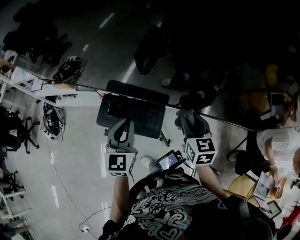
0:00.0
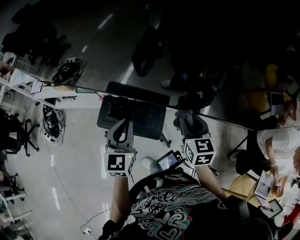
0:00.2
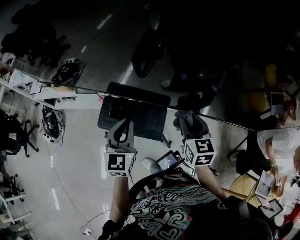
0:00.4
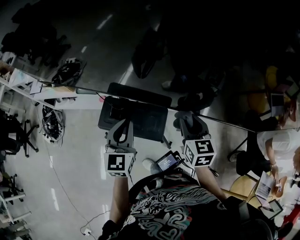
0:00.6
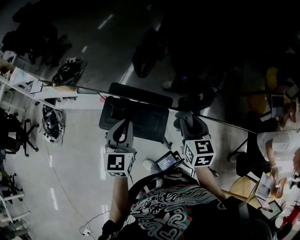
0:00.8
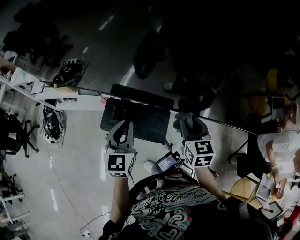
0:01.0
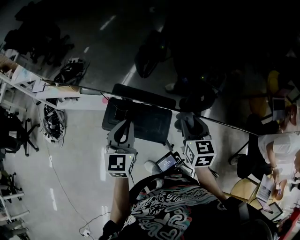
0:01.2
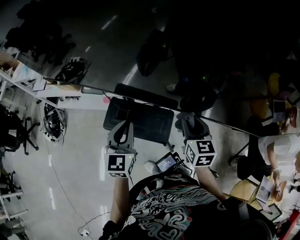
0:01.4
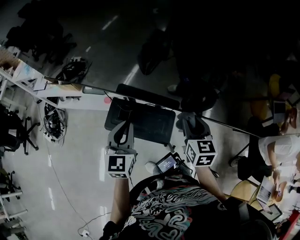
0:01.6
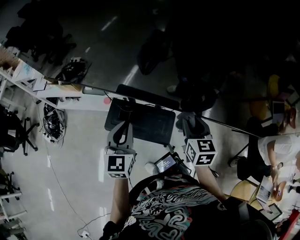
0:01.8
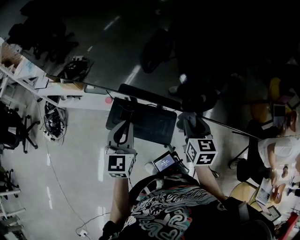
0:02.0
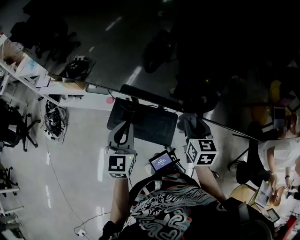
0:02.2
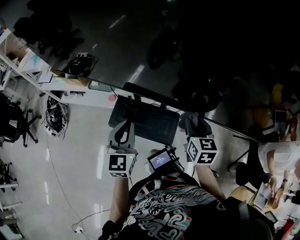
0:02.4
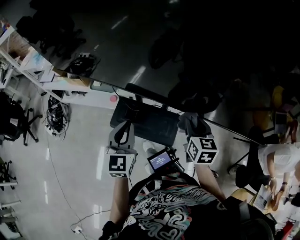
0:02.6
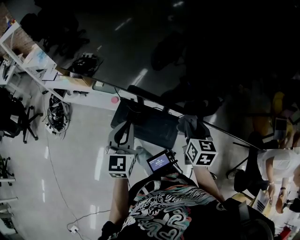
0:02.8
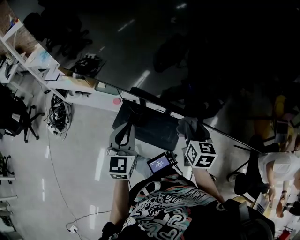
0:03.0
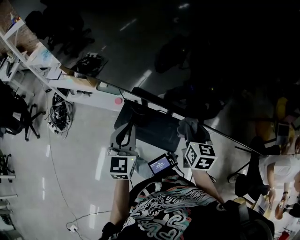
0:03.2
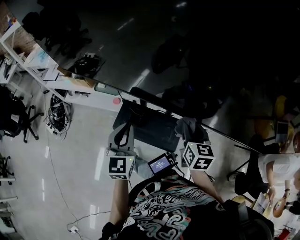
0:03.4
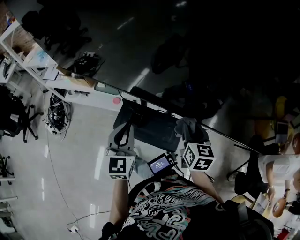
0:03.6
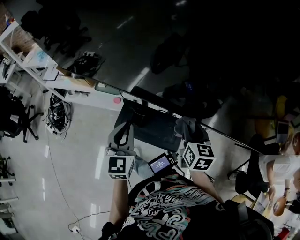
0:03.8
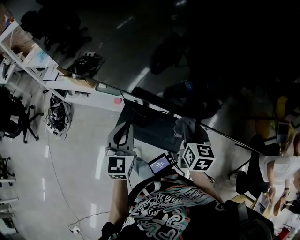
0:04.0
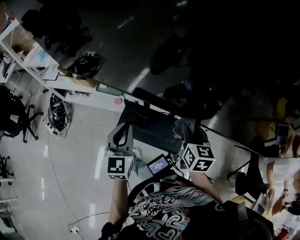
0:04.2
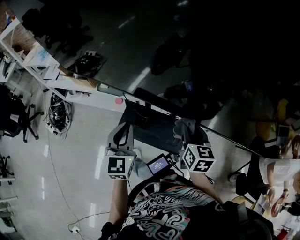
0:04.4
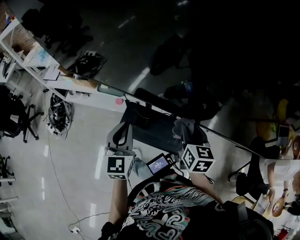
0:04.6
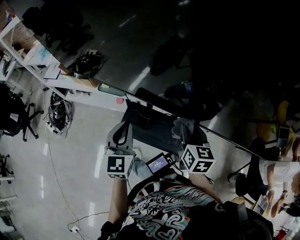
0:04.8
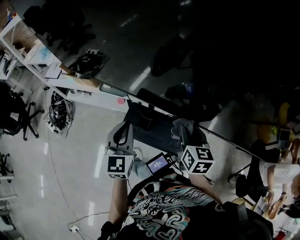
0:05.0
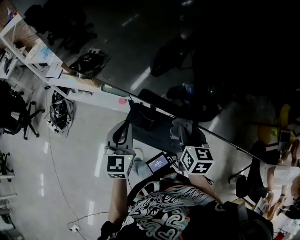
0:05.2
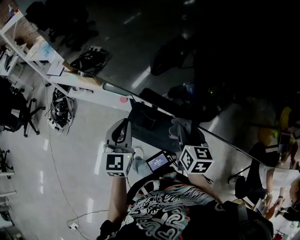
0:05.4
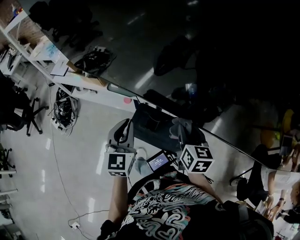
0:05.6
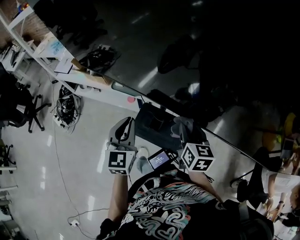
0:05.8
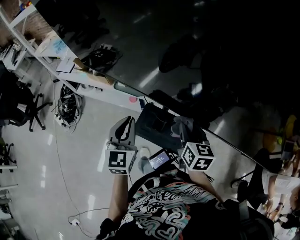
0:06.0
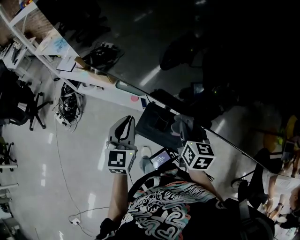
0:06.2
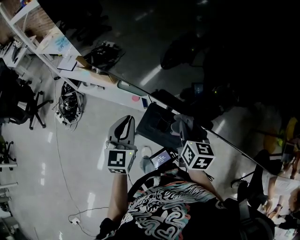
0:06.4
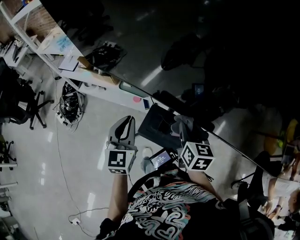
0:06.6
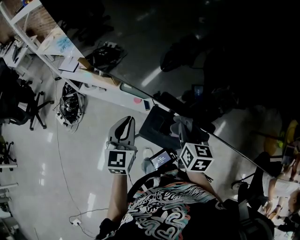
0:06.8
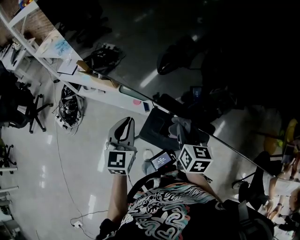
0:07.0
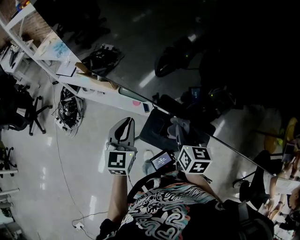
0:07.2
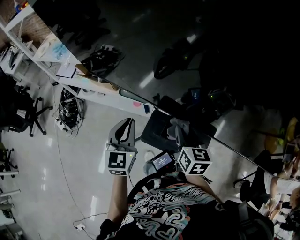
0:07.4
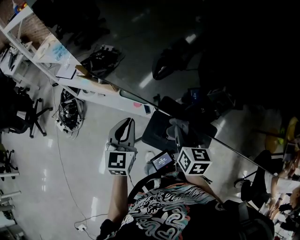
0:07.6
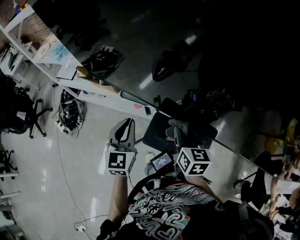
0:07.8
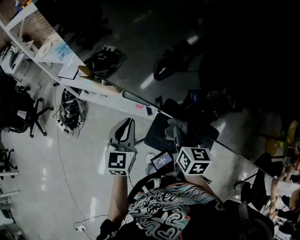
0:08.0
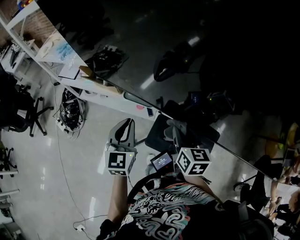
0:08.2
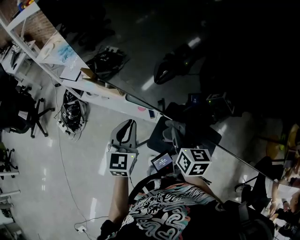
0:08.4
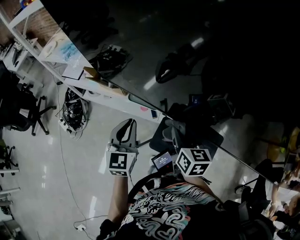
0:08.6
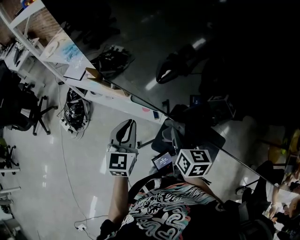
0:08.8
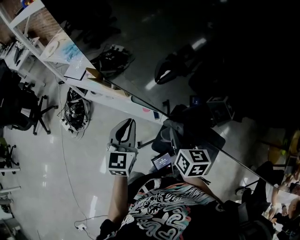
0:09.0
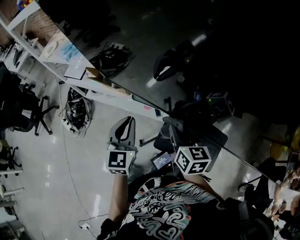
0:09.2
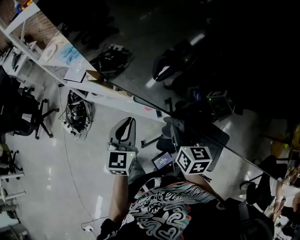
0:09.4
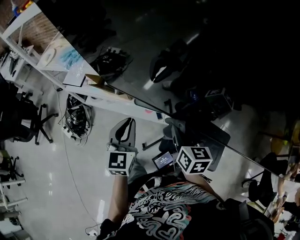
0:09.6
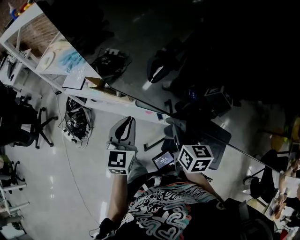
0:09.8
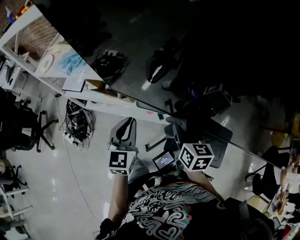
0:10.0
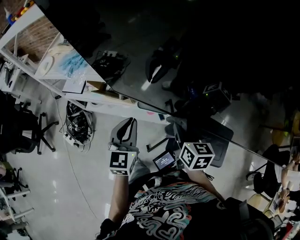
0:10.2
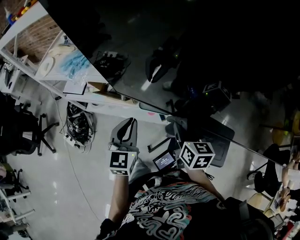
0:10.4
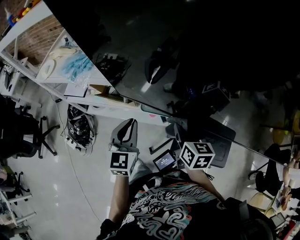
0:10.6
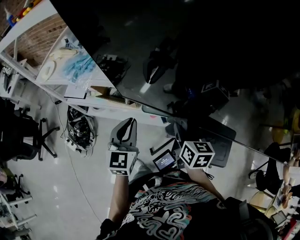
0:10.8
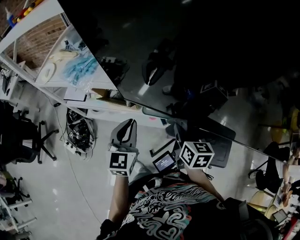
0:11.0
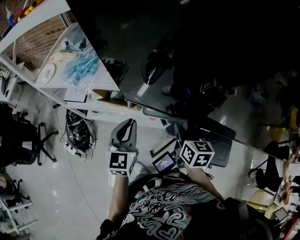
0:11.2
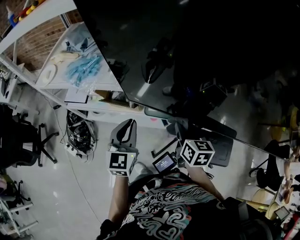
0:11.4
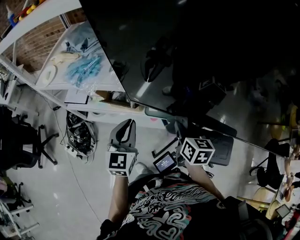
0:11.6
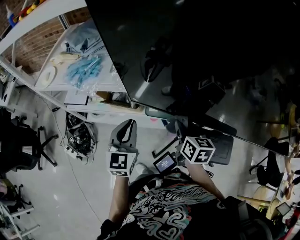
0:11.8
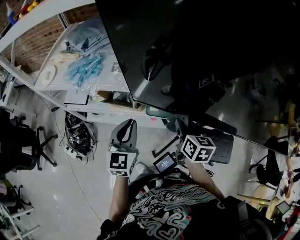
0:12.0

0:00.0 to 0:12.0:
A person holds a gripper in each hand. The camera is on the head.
0:00.0 to 0:01.6: Both grippers move to the left, some 10 cm.
0:01.6 to 0:03.0: The left gripper shifts approximately 5 cm to the left.
0:03.0 to 0:04.4: The two grippers go roughly 5 cm to the left.
0:04.4 to 0:06.0: The grippers both shift to the left and forward by roughly 15 cm.
0:06.0 to 0:07.6: The two grippers go some 15 cm to the left and forward.
0:07.6 to 0:09.0: Both grippers move to the left and forward, roughly 10 cm.
0:09.0 to 0:10.4: The two grippers go about 10 cm to the left and forward.
0:10.4 to 0:12.0: Both grippers move to the left, some 10 cm.

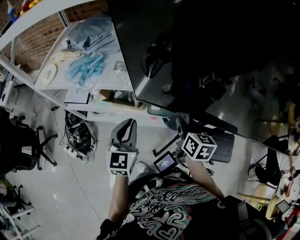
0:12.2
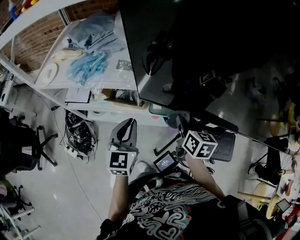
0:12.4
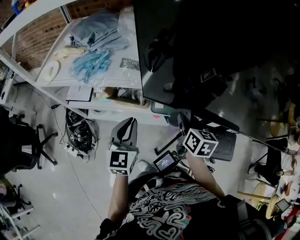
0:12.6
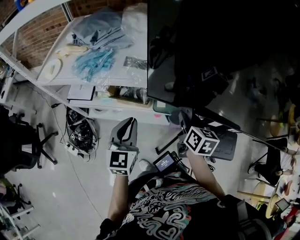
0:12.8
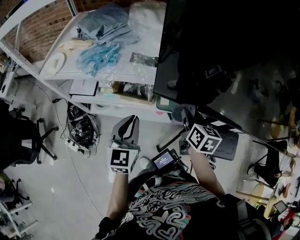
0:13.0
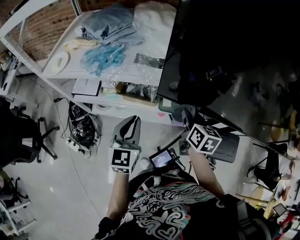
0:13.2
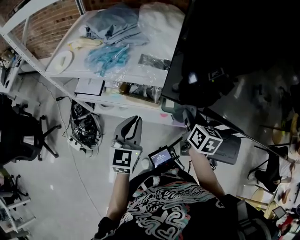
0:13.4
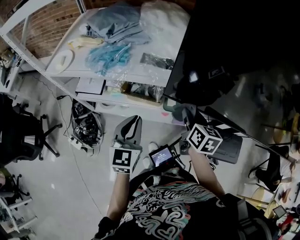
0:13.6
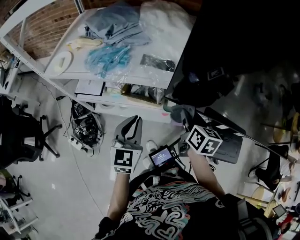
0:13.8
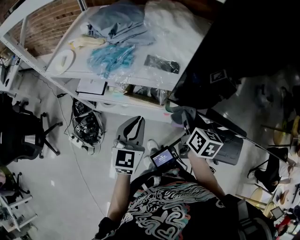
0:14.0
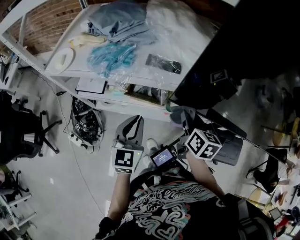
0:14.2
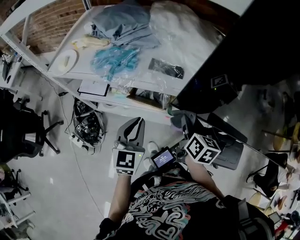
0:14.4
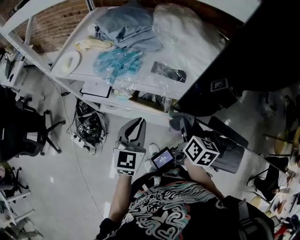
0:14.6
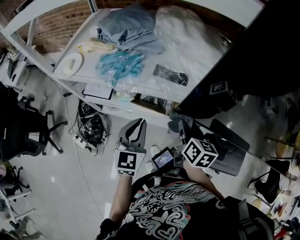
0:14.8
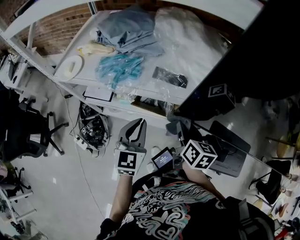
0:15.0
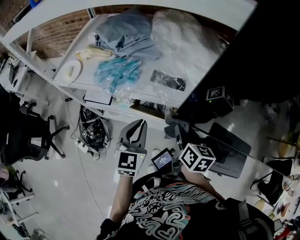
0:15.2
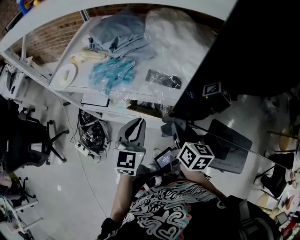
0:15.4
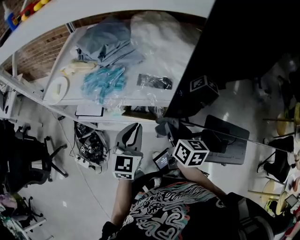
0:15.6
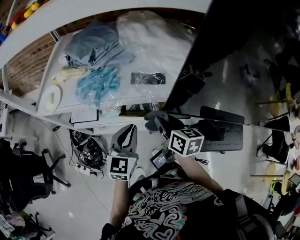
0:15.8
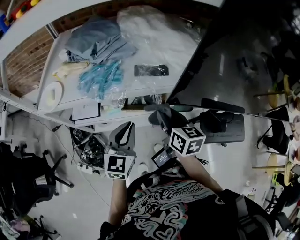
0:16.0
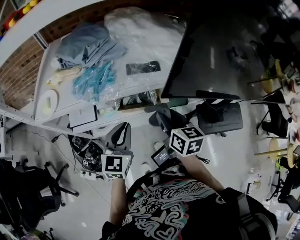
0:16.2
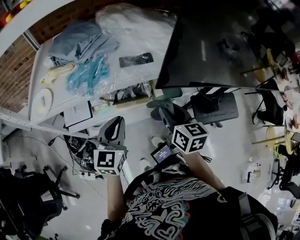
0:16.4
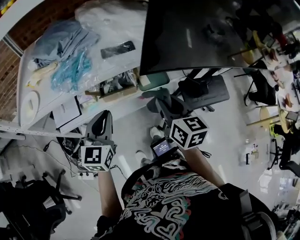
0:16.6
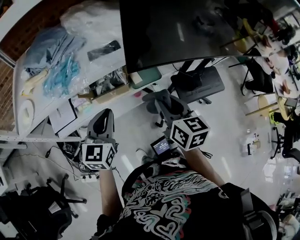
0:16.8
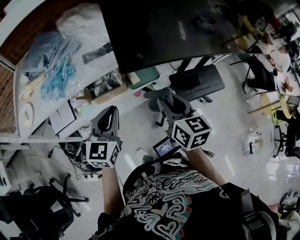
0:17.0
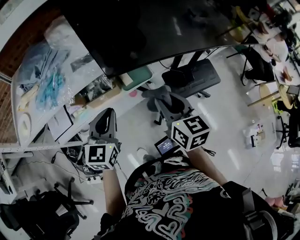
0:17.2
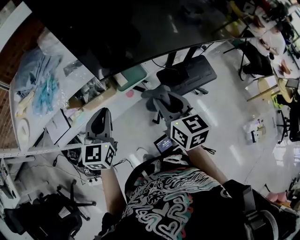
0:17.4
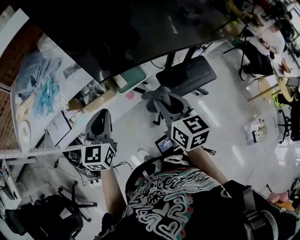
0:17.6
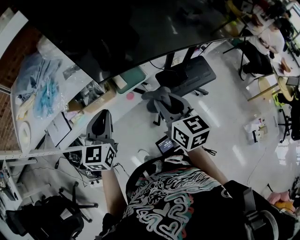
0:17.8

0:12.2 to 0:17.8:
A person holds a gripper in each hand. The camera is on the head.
0:12.2 to 0:13.6: The two grippers go some 10 cm to the left.
0:13.6 to 0:15.0: The right gripper travels to the left by roughly 5 cm; the left gripper heads forward, covering about 5 cm.
0:15.0 to 0:16.4: The right gripper travels backward and to the left by about 10 cm. Meanwhile the left gripper travels to the left by some 5 cm, and swivels approximately 30 degrees.
0:16.4 to 0:17.8: Both grippers move to the right, roughly 20 cm.

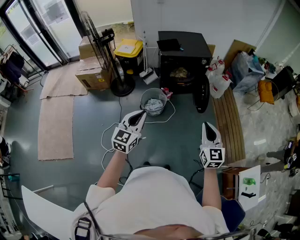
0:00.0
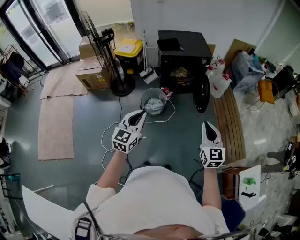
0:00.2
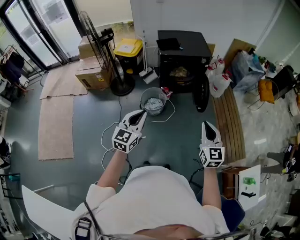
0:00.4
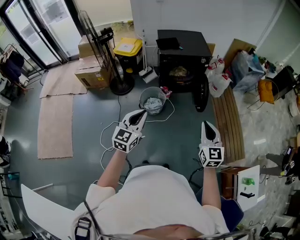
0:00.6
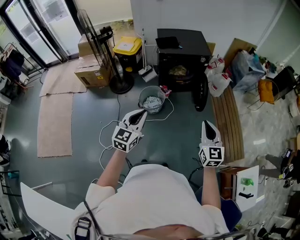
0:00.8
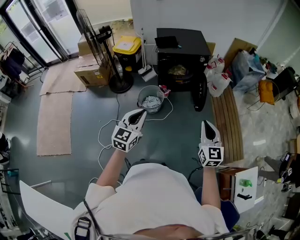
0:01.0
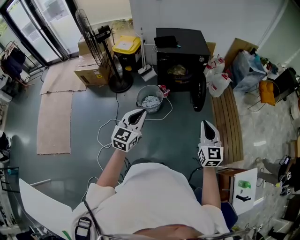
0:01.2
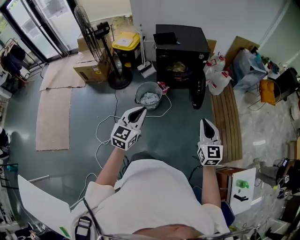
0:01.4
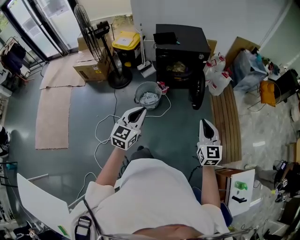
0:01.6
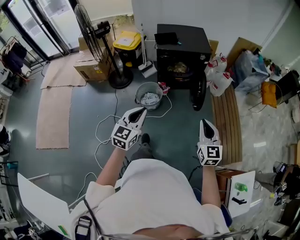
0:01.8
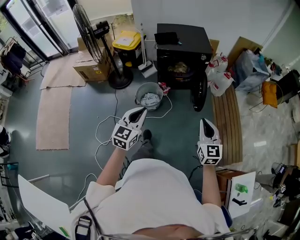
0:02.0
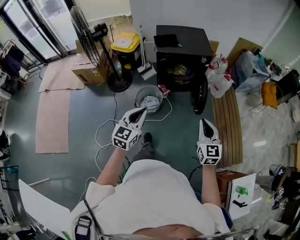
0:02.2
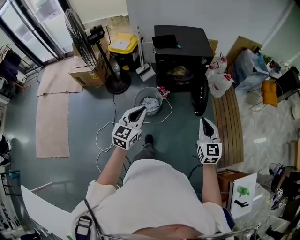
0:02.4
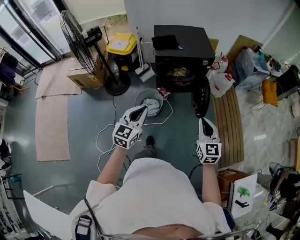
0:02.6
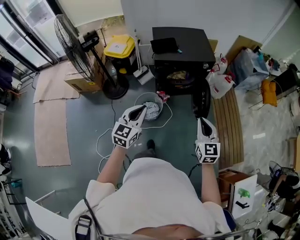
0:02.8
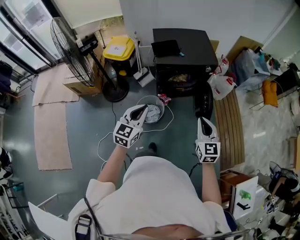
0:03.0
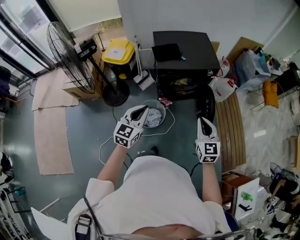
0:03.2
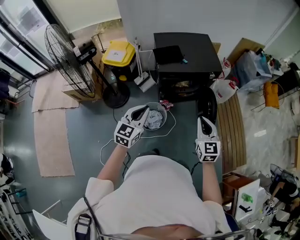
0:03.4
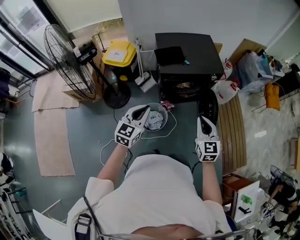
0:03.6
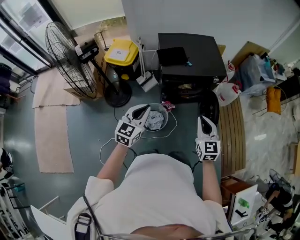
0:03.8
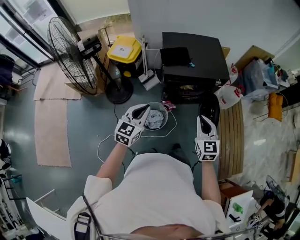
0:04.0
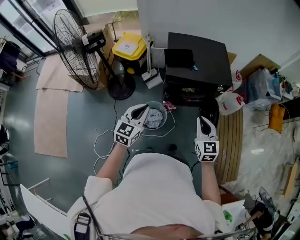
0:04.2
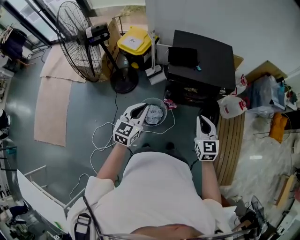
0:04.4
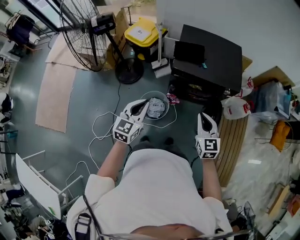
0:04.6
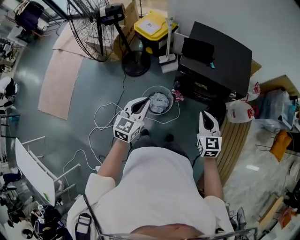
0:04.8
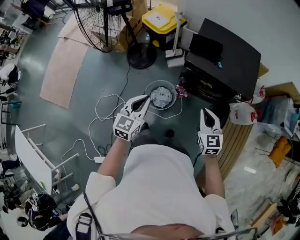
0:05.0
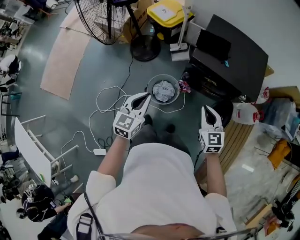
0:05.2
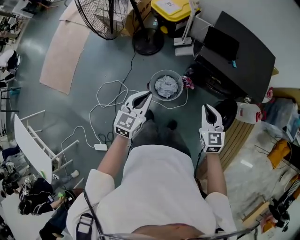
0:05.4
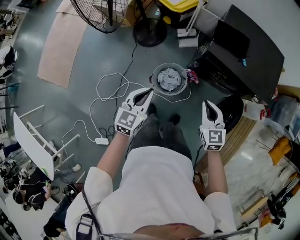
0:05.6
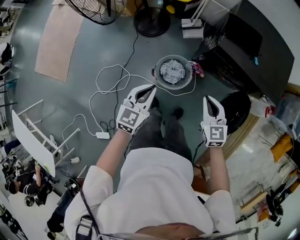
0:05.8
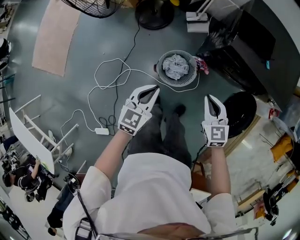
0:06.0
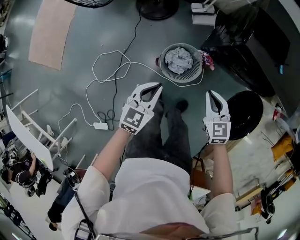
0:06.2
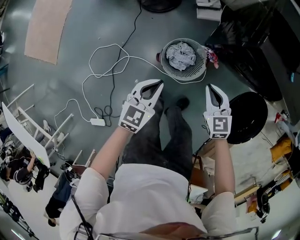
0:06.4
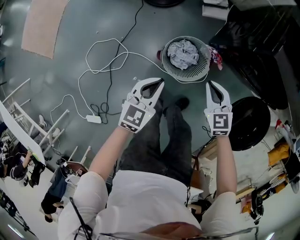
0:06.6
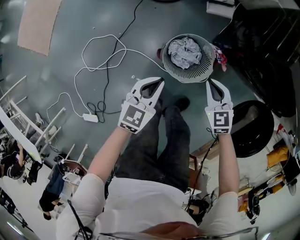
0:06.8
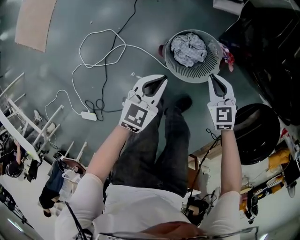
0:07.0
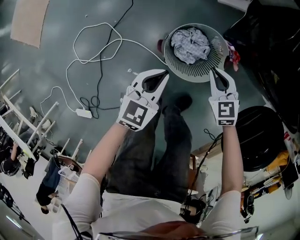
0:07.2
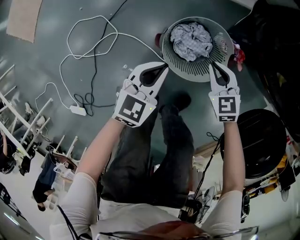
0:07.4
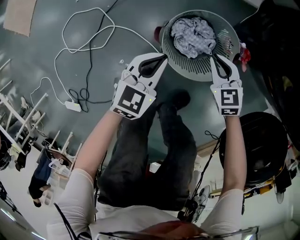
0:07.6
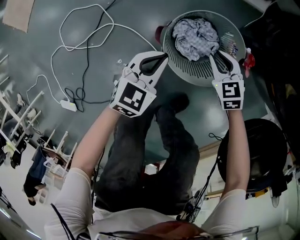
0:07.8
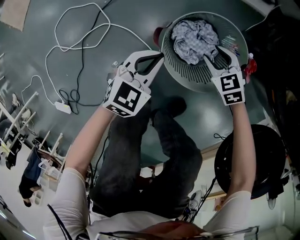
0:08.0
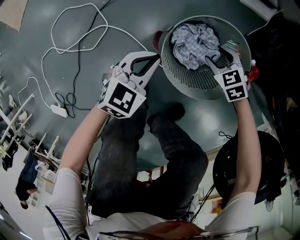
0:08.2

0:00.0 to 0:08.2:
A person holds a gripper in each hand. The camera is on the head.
0:00.0 to 0:01.6: The grippers both shift to the right by about 10 cm.
0:01.6 to 0:03.2: The grippers both shift forward and to the left by roughly 35 cm.
0:03.2 to 0:05.0: The right gripper moves some 20 cm, and rotates roughly 30 degrees; the left gripper moves approximately 5 cm, and swivels approximately 30 degrees.
0:05.0 to 0:06.6: The right gripper is displaced downward and to the left by about 40 cm, and changes its angle by roughly 30 degrees. Meanwhile the left gripper is displaced downward by some 35 cm.
0:06.6 to 0:08.2: Both grippers travel together downward, some 40 cm. The right gripper turns by some 30 degrees, and opens its fingers.
